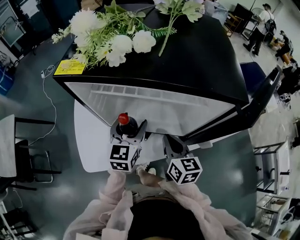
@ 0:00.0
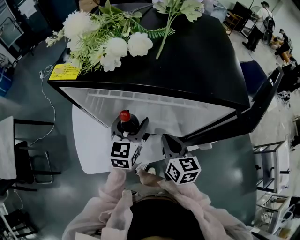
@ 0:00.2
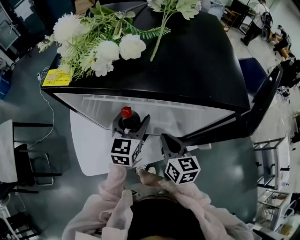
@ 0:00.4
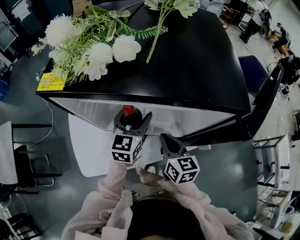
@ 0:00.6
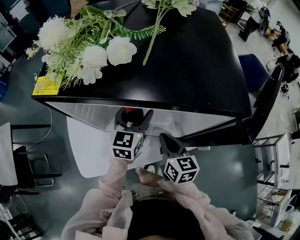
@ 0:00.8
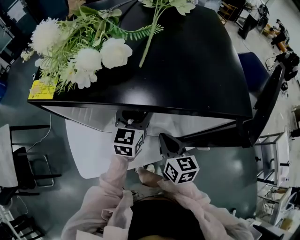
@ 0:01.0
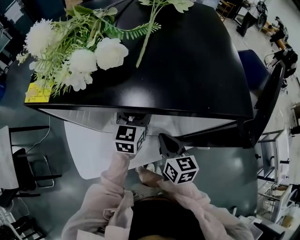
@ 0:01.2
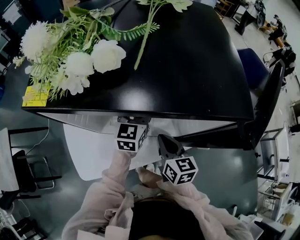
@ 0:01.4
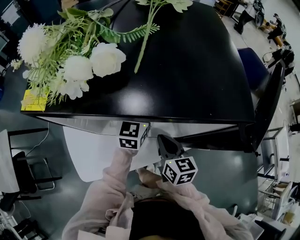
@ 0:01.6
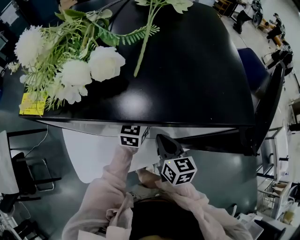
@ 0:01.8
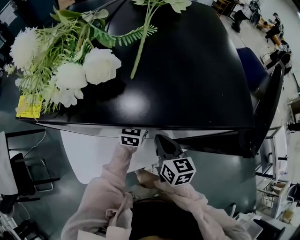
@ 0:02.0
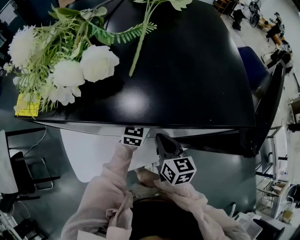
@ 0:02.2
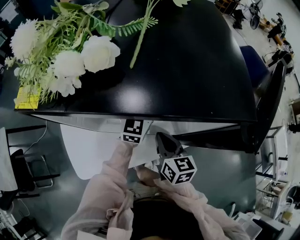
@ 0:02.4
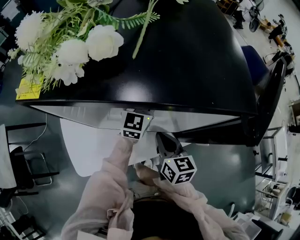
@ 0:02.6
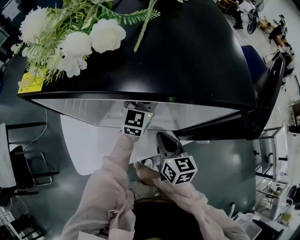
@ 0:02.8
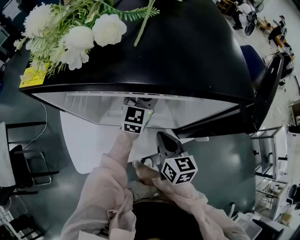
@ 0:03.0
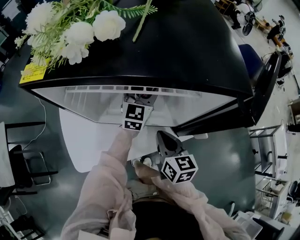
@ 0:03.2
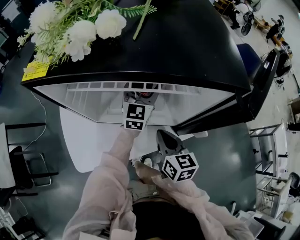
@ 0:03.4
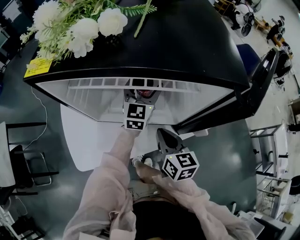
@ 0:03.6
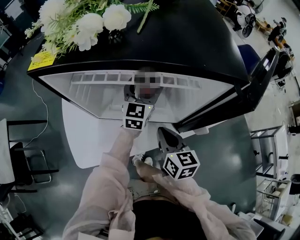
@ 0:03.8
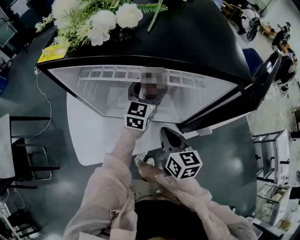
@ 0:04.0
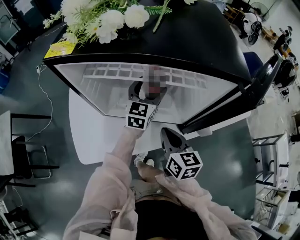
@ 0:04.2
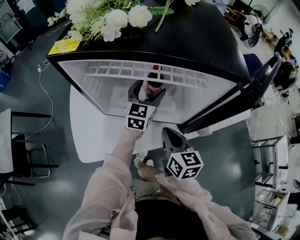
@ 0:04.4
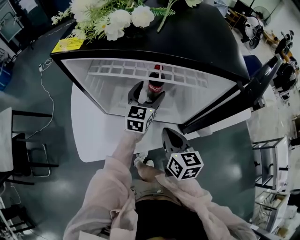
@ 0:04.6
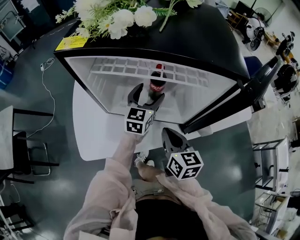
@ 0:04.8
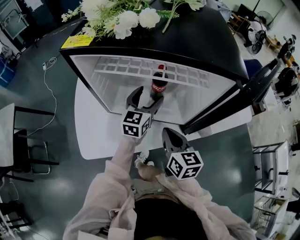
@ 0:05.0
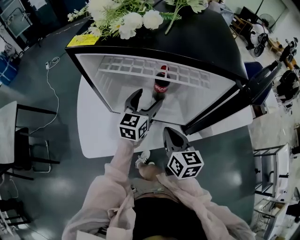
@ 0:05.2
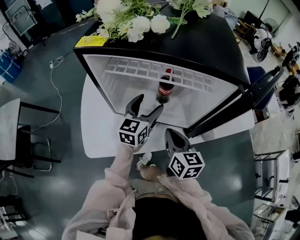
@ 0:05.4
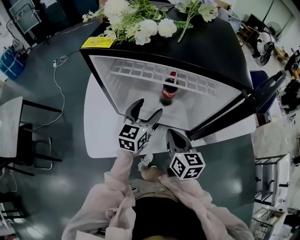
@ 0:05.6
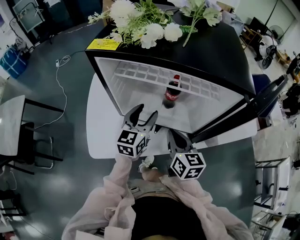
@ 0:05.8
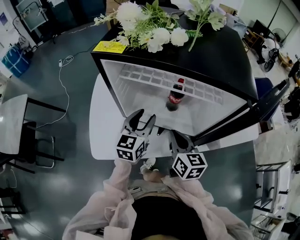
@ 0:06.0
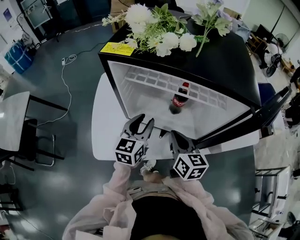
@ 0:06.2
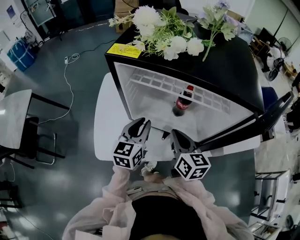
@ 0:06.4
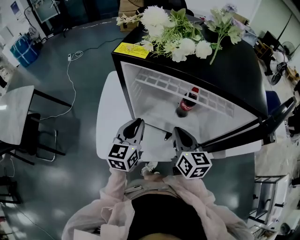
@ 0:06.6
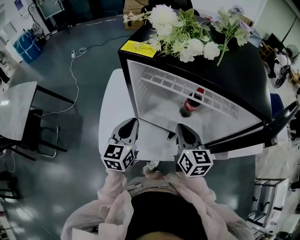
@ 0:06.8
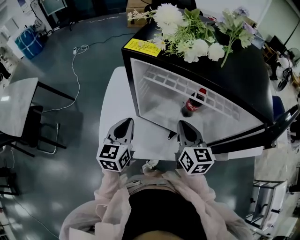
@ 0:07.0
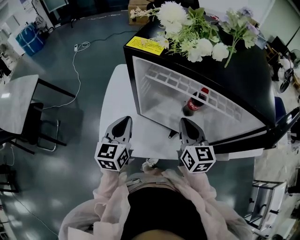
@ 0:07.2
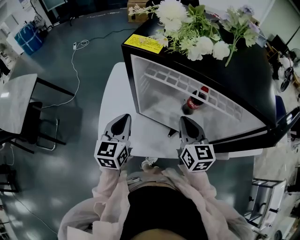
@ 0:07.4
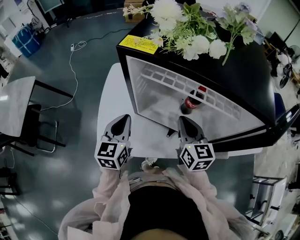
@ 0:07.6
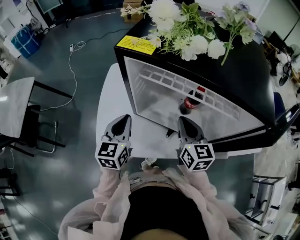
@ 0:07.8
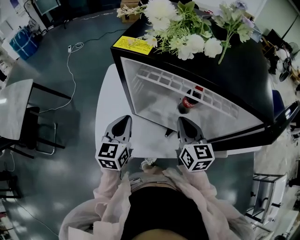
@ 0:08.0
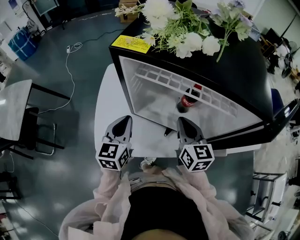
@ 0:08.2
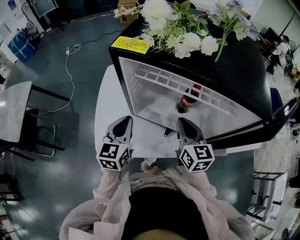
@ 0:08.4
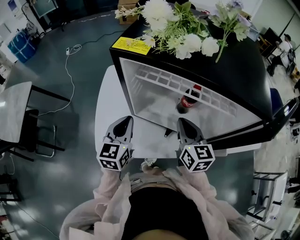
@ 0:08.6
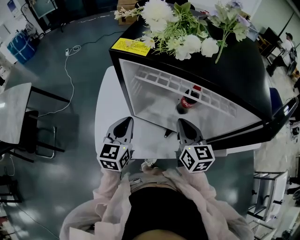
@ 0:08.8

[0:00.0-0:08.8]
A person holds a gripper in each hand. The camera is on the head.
0:00.0 to 0:01.4: The left gripper shifts approximately 15 cm forward and to the right.
0:01.4 to 0:03.0: There are only small adjustments of the grippers.
0:03.0 to 0:04.4: The left gripper shifts by roughly 5 cm.
0:04.4 to 0:05.8: The left gripper heads backward and to the left, covering about 15 cm.
0:05.8 to 0:07.4: The right gripper goes approximately 5 cm forward; the left gripper travels to the left by approximately 15 cm, and closes.
0:07.4 to 0:08.8: The grippers move only a little.

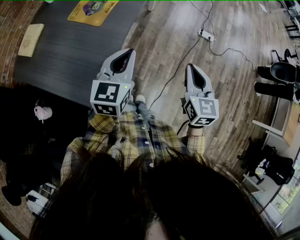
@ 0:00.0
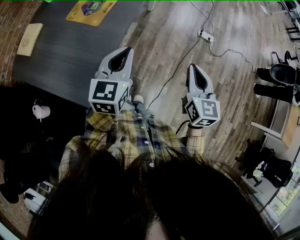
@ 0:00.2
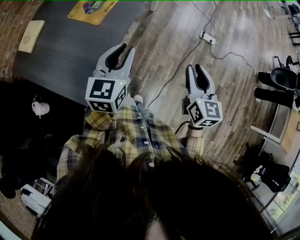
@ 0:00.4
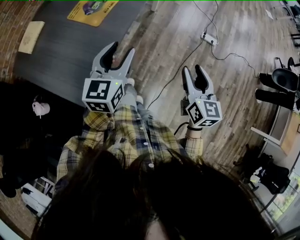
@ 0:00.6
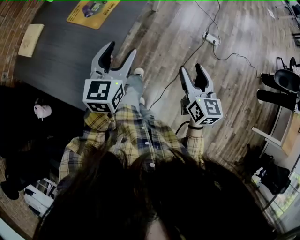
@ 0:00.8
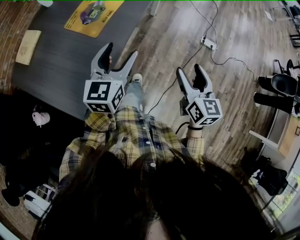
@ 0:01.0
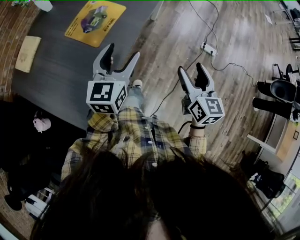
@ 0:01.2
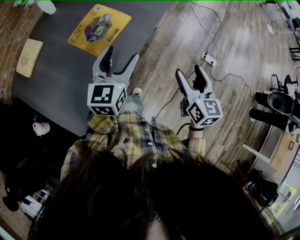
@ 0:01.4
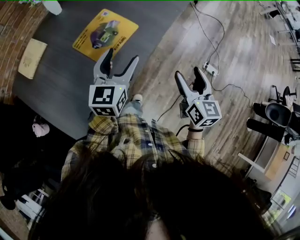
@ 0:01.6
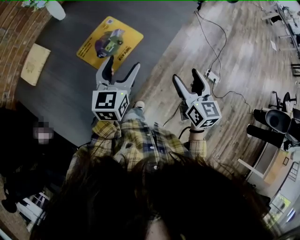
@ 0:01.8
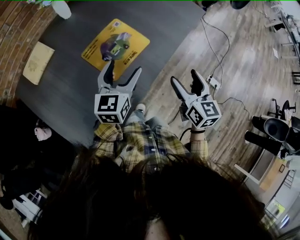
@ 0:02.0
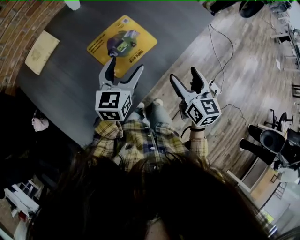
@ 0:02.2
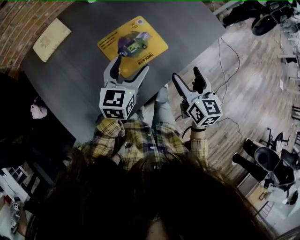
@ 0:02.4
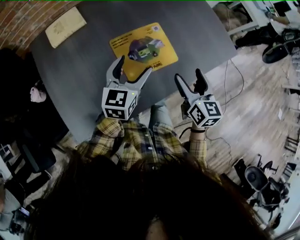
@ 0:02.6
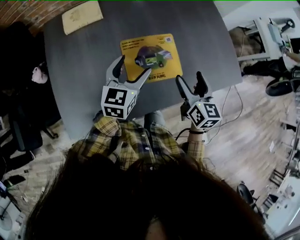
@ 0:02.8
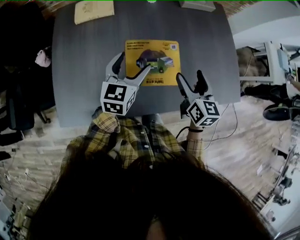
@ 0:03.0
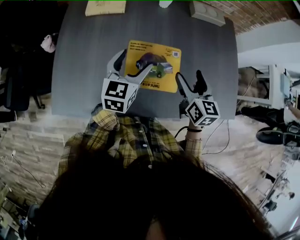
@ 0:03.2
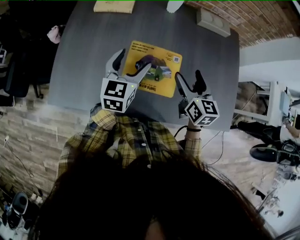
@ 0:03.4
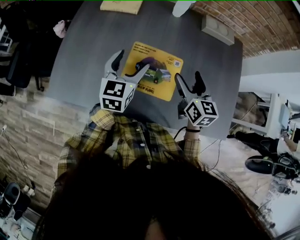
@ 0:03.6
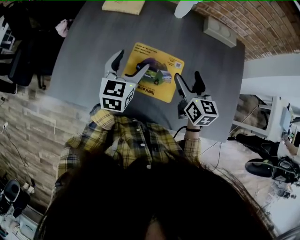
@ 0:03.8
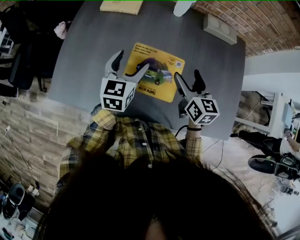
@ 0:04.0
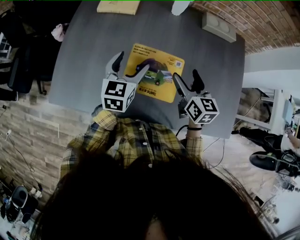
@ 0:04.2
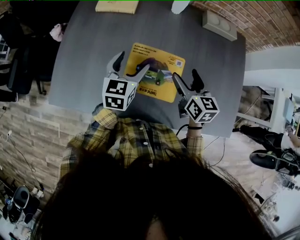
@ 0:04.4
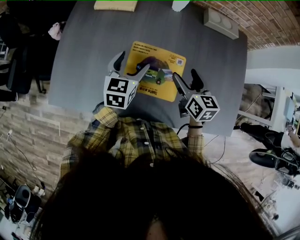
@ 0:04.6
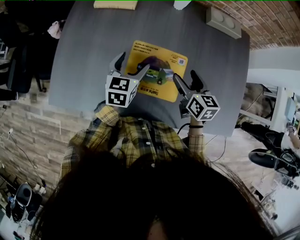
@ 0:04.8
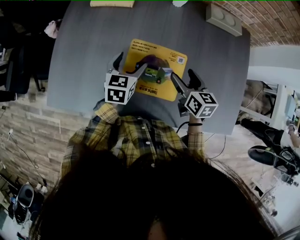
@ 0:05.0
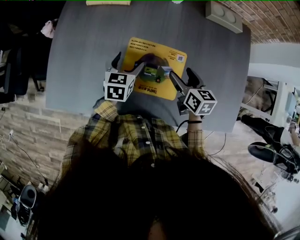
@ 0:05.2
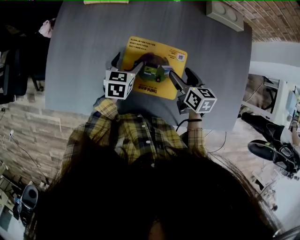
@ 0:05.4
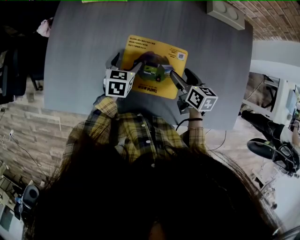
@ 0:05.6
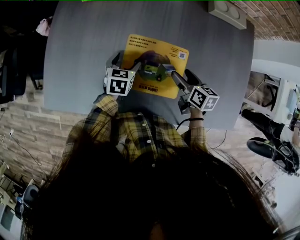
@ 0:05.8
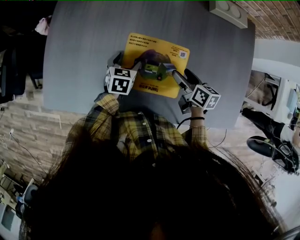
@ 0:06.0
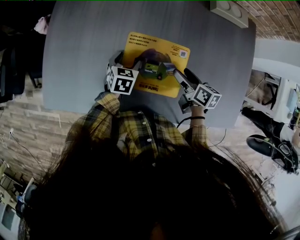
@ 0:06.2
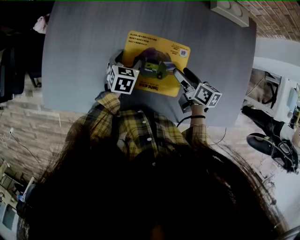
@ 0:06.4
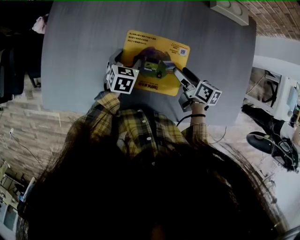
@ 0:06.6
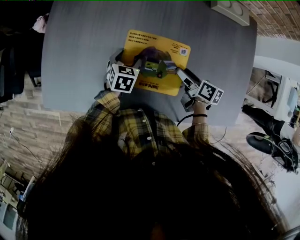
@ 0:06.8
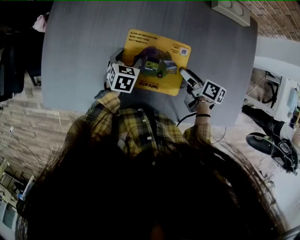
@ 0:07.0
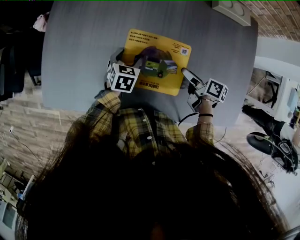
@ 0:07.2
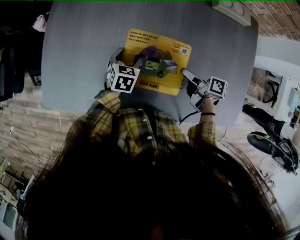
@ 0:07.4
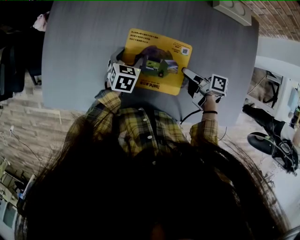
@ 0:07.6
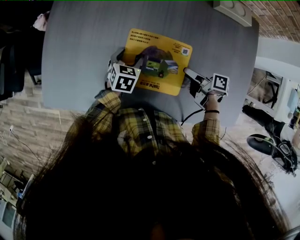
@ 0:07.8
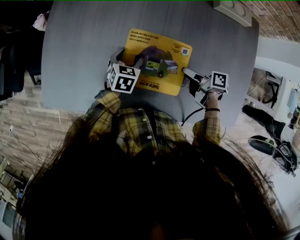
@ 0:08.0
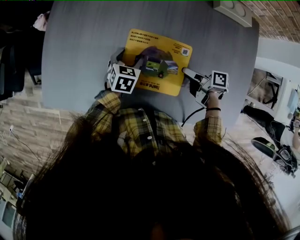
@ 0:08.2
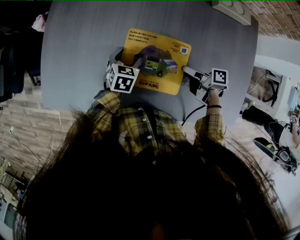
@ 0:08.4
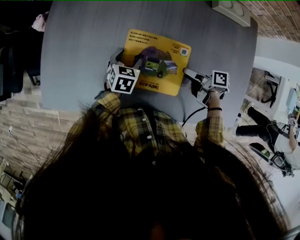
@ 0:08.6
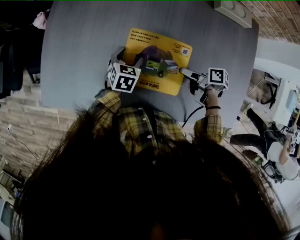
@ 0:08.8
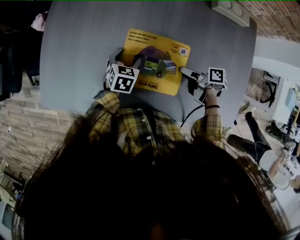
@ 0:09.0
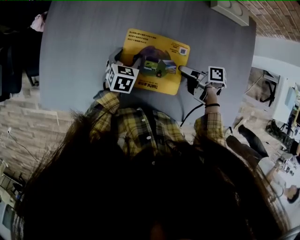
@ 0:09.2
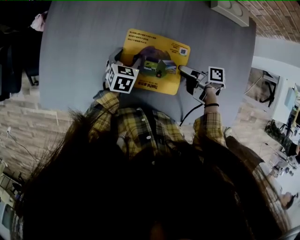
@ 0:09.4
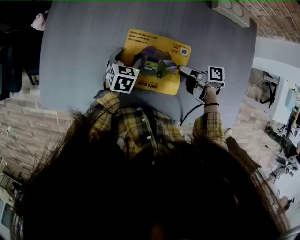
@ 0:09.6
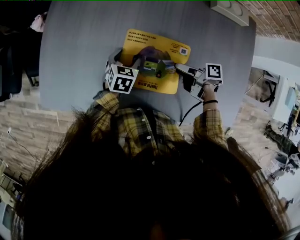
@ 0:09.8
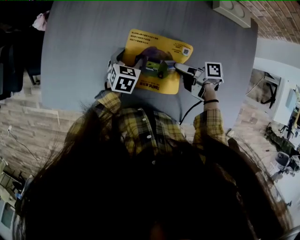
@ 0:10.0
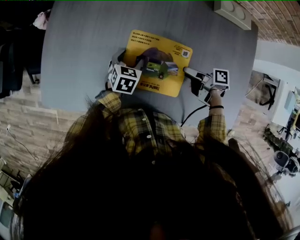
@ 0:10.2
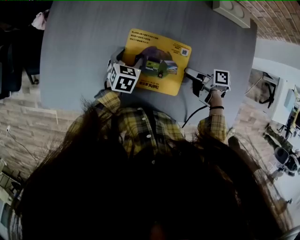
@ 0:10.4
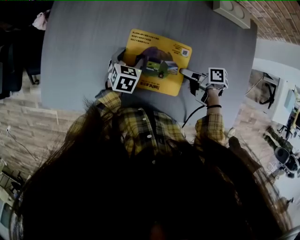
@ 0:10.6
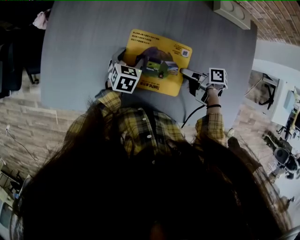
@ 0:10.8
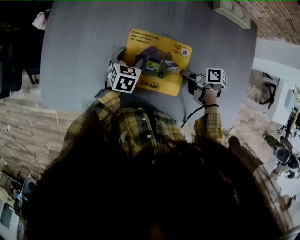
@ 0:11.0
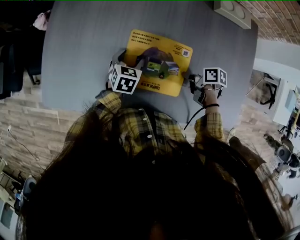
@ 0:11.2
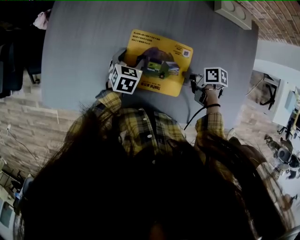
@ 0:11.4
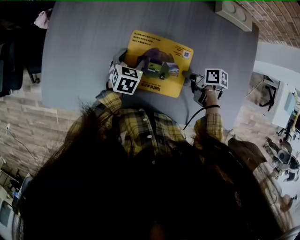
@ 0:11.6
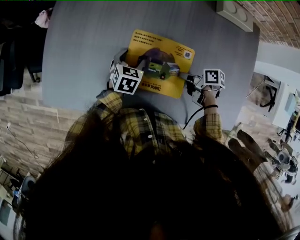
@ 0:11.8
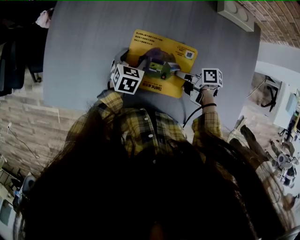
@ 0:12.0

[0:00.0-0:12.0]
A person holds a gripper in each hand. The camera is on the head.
0:00.0 to 0:01.6: Both grippers move forward, roughly 25 cm. The right gripper opens its fingers. Meanwhile the left gripper opens up.
0:01.6 to 0:03.0: The left gripper ends up about 20 cm from where it was, and swivels some 40 degrees. The right gripper moves about 35 cm, and rotates roughly 50 degrees.
0:03.0 to 0:04.4: The right gripper travels forward by roughly 10 cm, and turns by approximately 20 degrees.
0:04.4 to 0:06.0: The grippers both shift downward by approximately 15 cm. The left gripper changes its angle by approximately 30 degrees. The right gripper rotates about 30 degrees.
0:06.0 to 0:07.6: The right gripper rotates some 40 degrees.
0:07.6 to 0:10.4: The grippers make only small movements.
0:10.4 to 0:12.0: The right gripper moves to the left, about 5 cm, and closes its fingers.

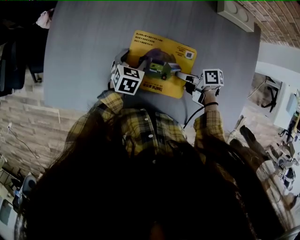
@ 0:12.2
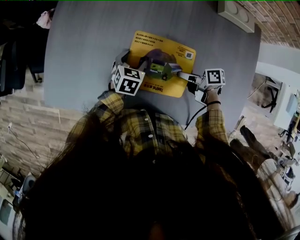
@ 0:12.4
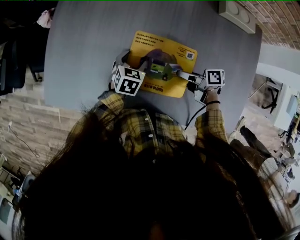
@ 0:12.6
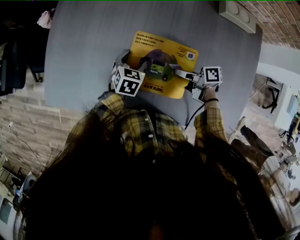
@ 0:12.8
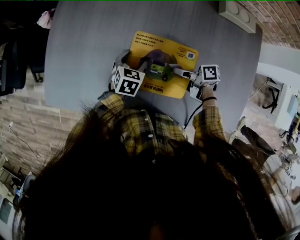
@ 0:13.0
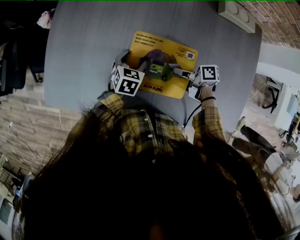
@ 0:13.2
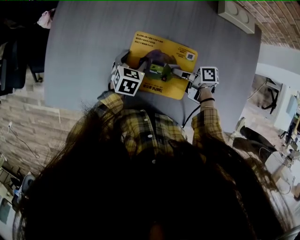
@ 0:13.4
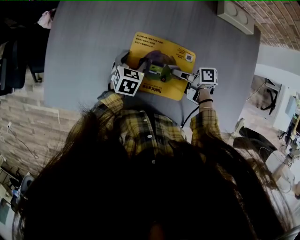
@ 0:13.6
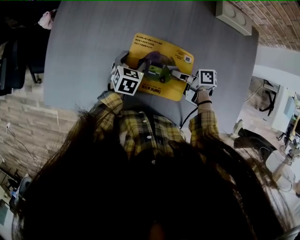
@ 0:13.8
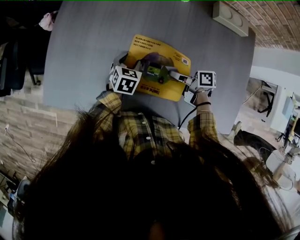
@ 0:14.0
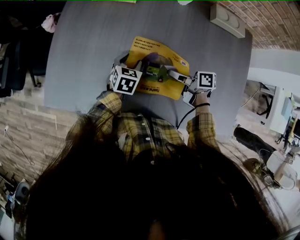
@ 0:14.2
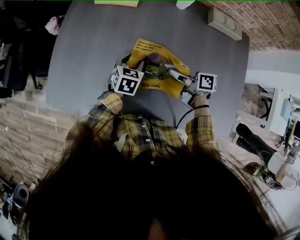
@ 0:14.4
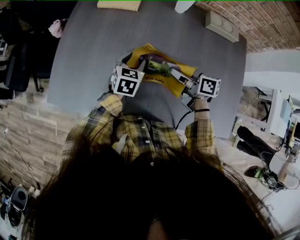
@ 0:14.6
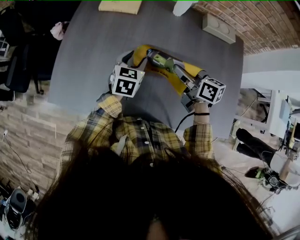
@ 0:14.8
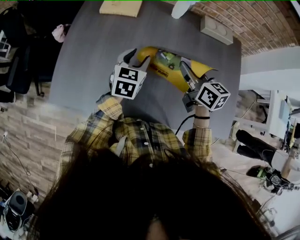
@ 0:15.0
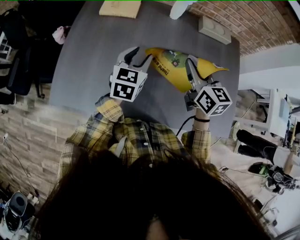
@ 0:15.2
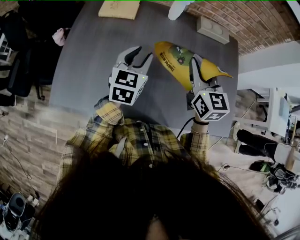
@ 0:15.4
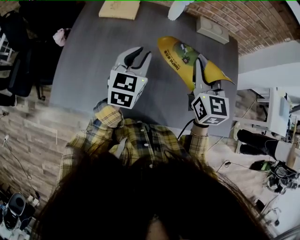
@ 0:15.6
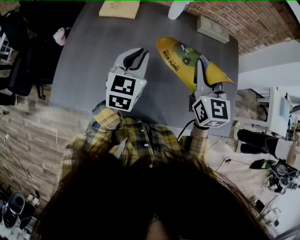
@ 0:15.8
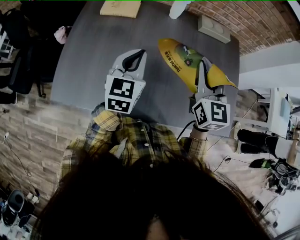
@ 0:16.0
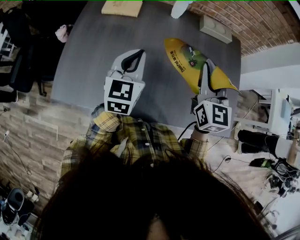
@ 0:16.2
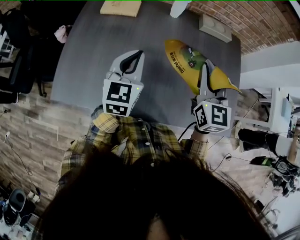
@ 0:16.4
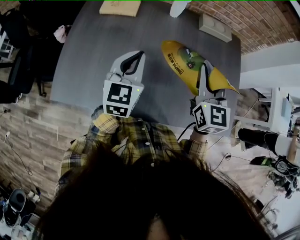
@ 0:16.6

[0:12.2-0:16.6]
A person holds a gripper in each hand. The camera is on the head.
0:12.2 to 0:13.6: The grippers move only a little.
0:13.6 to 0:15.2: The grippers both shift upward by some 25 cm. The left gripper changes its angle by roughly 30 degrees. Meanwhile the right gripper swivels roughly 70 degrees.
0:15.2 to 0:16.6: Both grippers travel together upward, approximately 5 cm. The left gripper closes its fingers. The right gripper rotates some 30 degrees.
